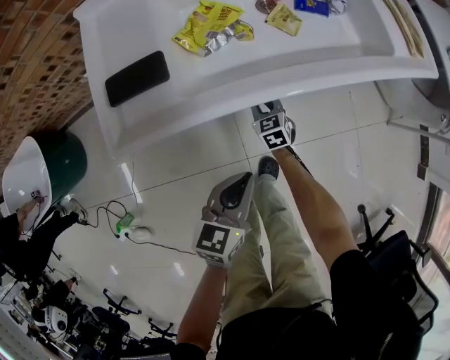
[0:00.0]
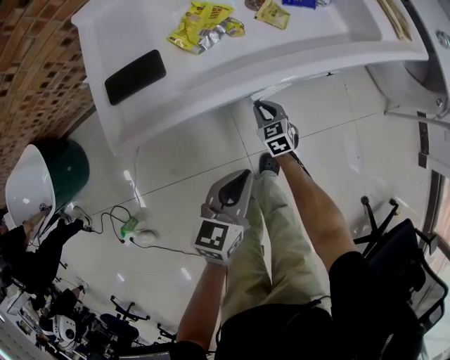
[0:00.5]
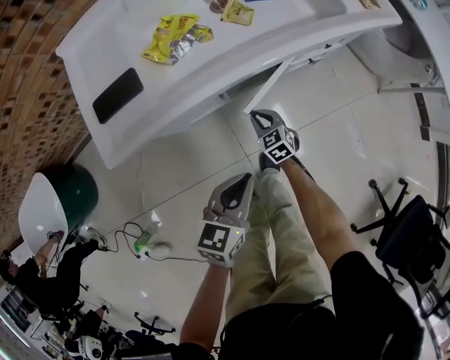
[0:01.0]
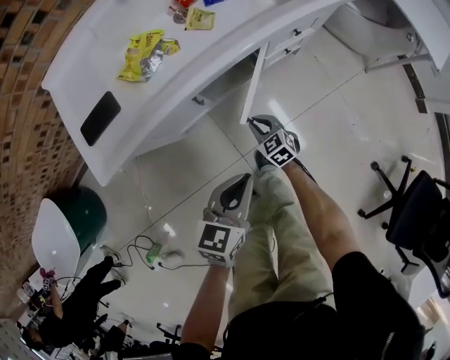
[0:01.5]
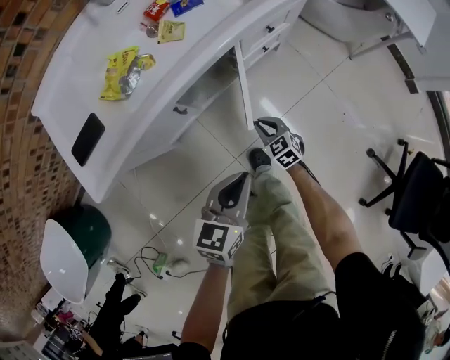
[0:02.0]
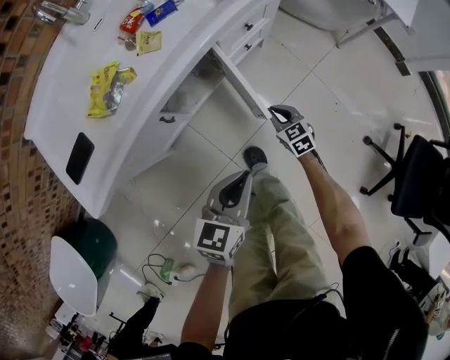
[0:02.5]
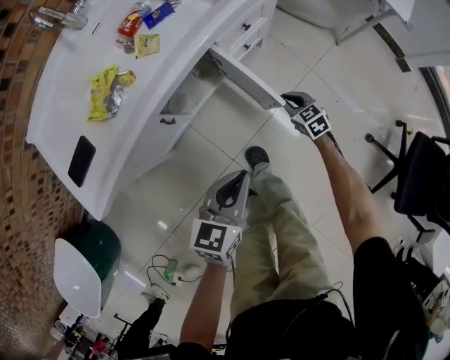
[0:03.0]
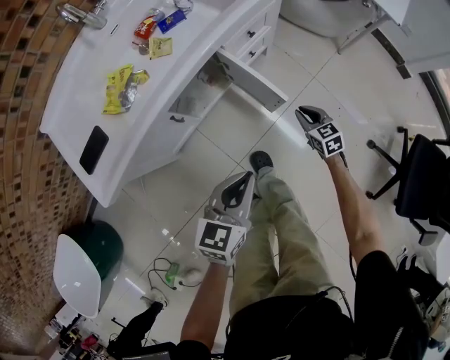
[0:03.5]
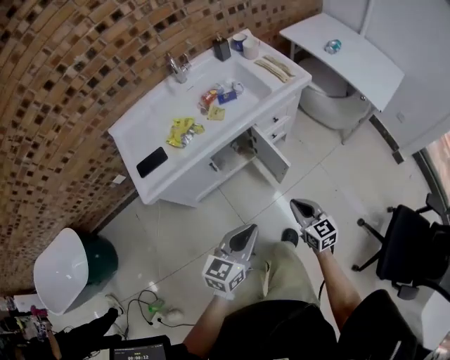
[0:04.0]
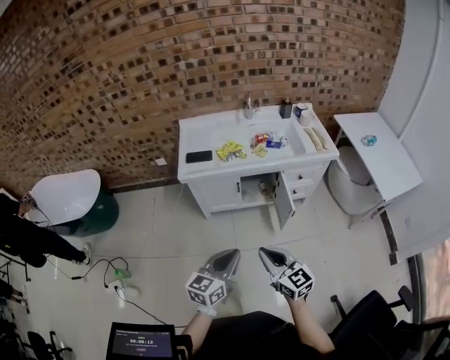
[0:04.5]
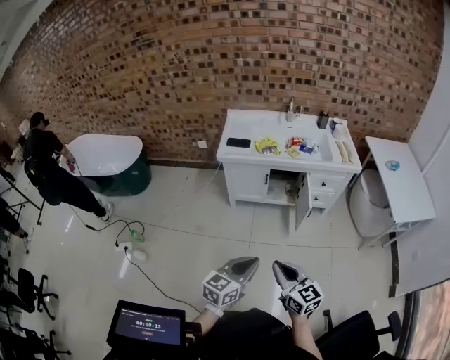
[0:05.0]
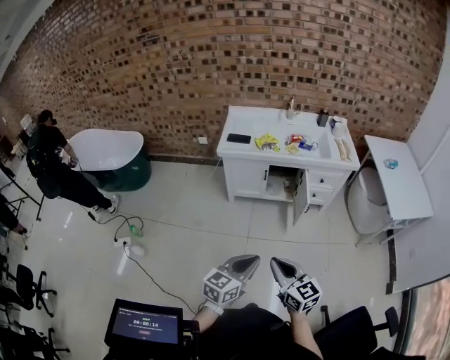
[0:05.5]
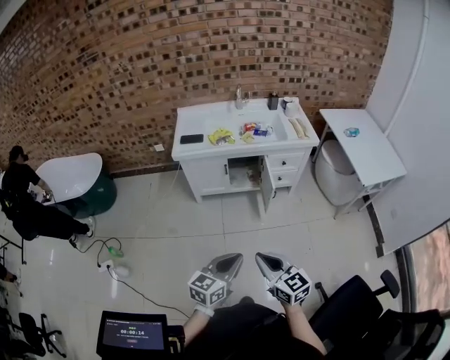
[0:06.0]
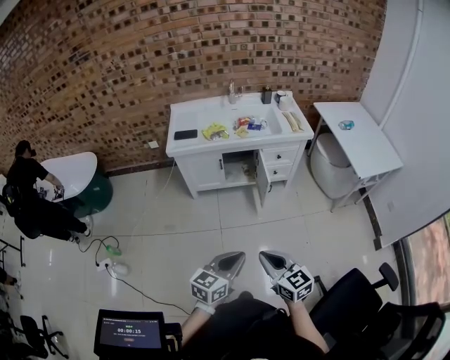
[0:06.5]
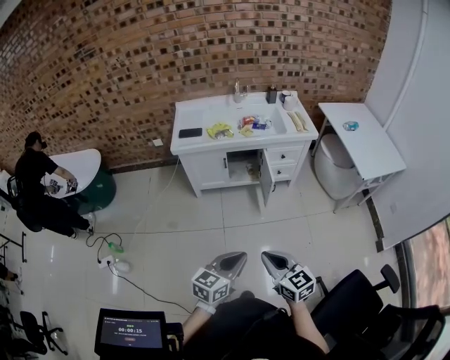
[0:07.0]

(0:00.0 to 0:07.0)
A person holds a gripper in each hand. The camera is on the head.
0:00.0 - 0:02.0: The right gripper goes some 25 cm to the right and backward, while the left gripper heads to the right and backward, covering approximately 15 cm, and turns by some 20 degrees.
0:02.0 - 0:03.5: The right gripper moves to the right, approximately 20 cm, while the left gripper shifts by roughly 5 cm.
0:03.5 - 0:05.0: The left gripper ends up about 50 cm from where it was, and changes its angle by roughly 40 degrees; the right gripper is displaced upward by about 50 cm, and tips its fingers upward by approximately 30 degrees.
0:05.0 - 0:07.0: Both grippers move to the right, roughly 5 cm.

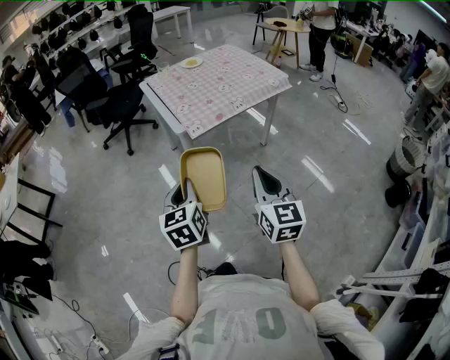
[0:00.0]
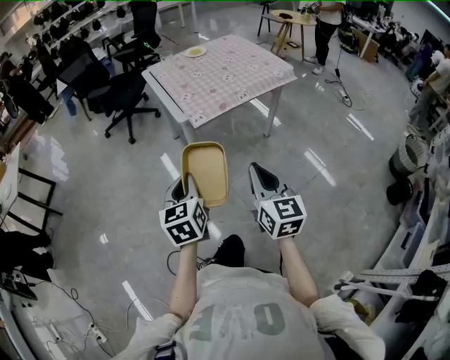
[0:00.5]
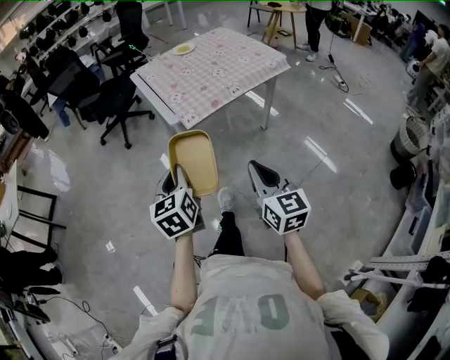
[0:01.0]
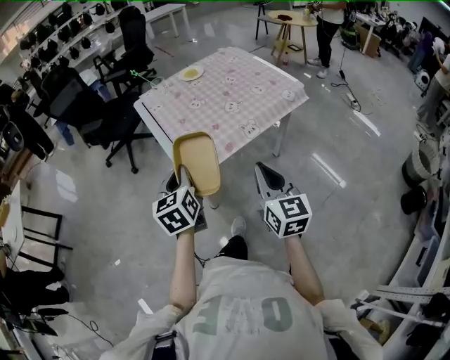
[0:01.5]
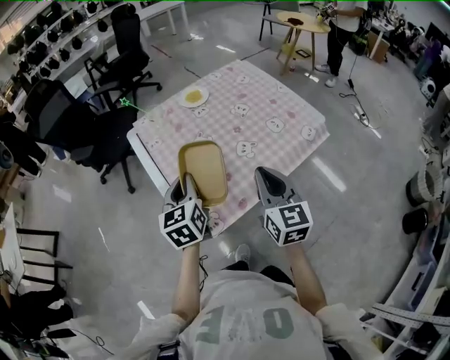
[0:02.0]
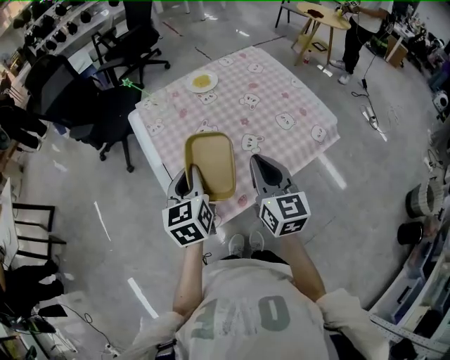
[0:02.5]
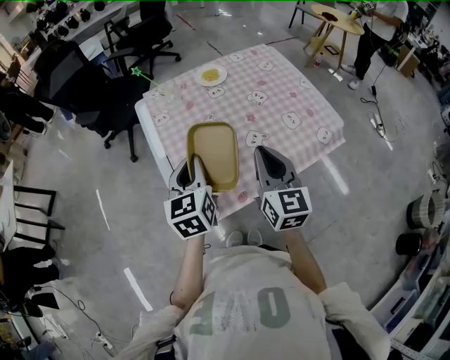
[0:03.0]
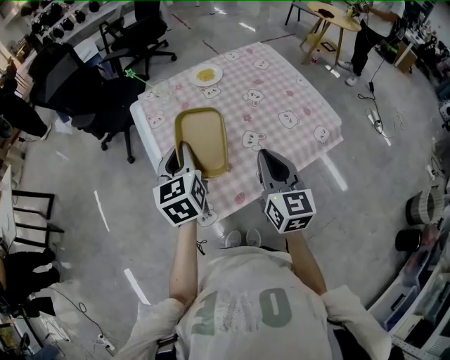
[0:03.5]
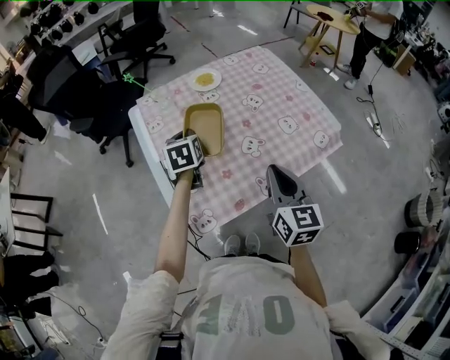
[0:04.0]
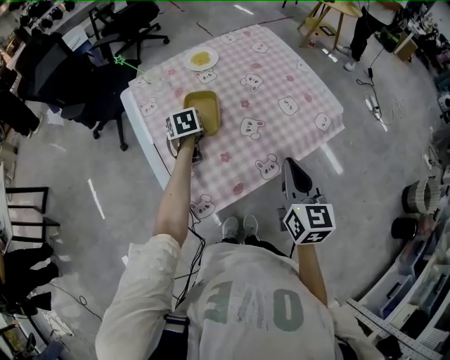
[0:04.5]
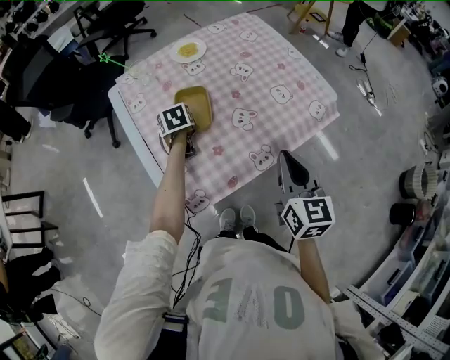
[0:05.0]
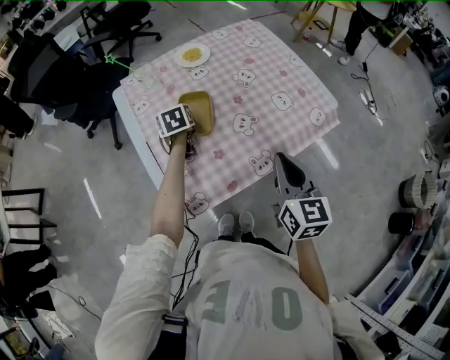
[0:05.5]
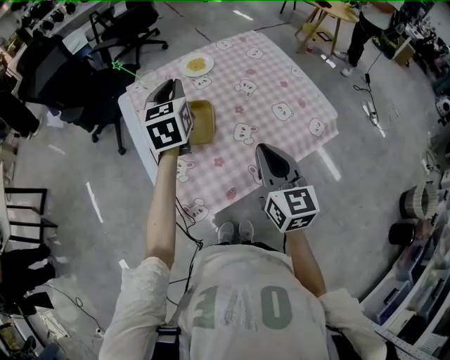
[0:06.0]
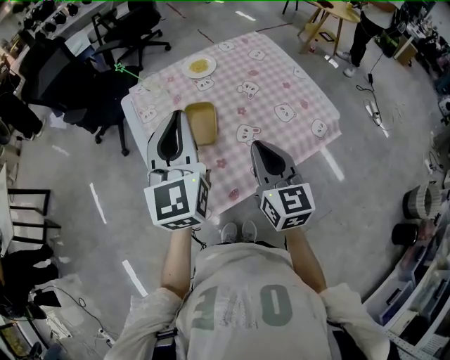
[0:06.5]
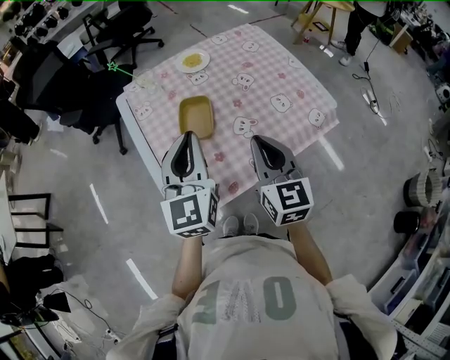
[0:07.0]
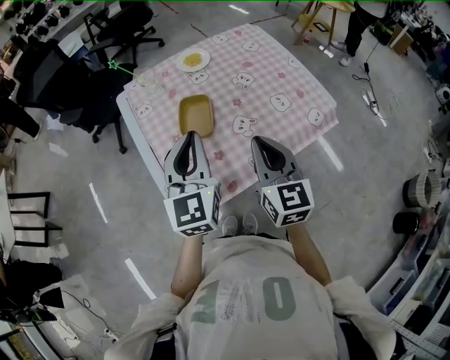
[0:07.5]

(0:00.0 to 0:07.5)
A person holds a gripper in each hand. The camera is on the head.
0:00.0 - 0:02.0: Both grippers are carried forward, roughly 50 cm.
0:02.0 - 0:04.0: The right gripper ends up roughly 5 cm from where it was; the left gripper is displaced forward and downward by about 20 cm.
0:04.0 - 0:05.5: The left gripper is displaced downward and forward by about 10 cm.
0:05.5 - 0:07.5: The left gripper moves upward and backward, some 30 cm, and tilts its fingers approximately 40 degrees upward; the right gripper shifts by about 5 cm.

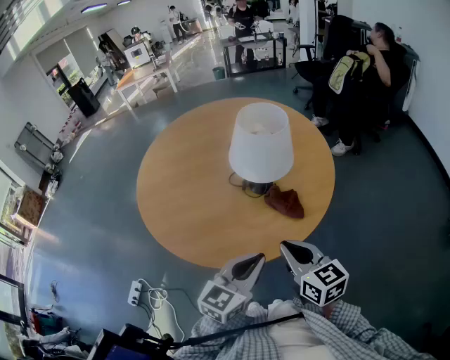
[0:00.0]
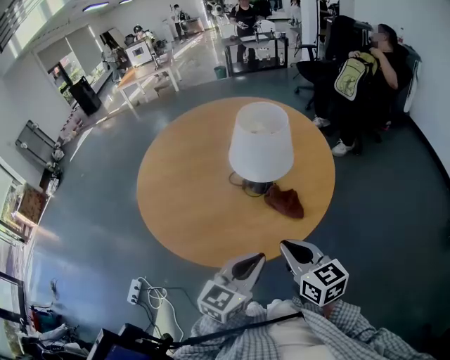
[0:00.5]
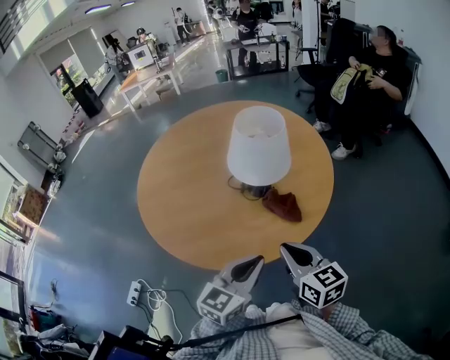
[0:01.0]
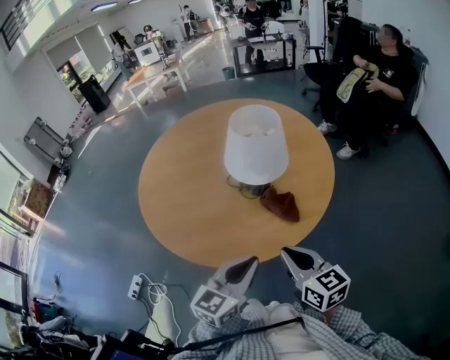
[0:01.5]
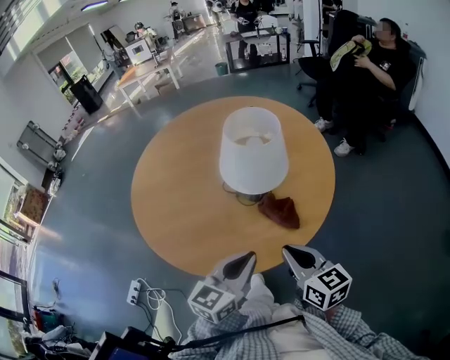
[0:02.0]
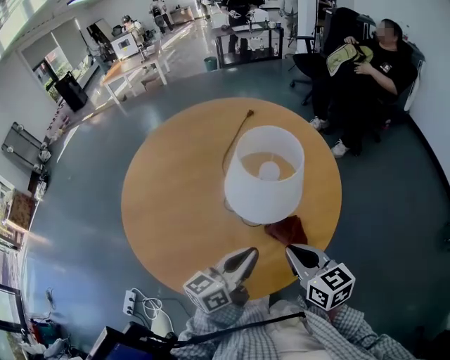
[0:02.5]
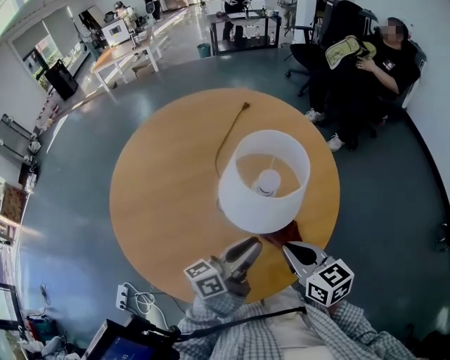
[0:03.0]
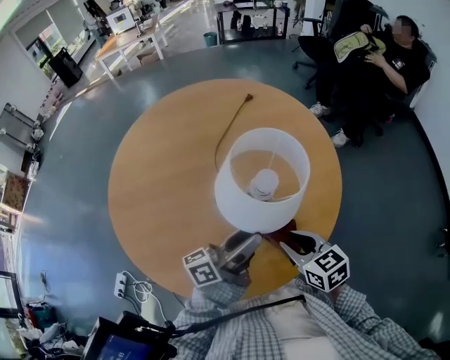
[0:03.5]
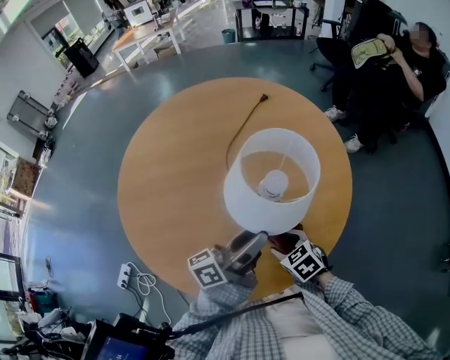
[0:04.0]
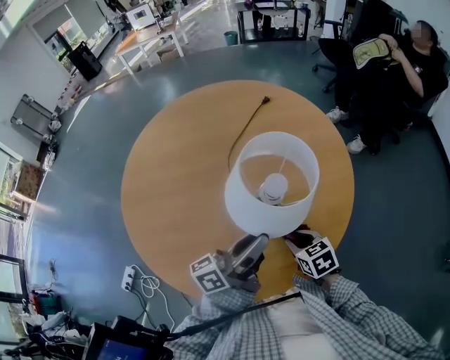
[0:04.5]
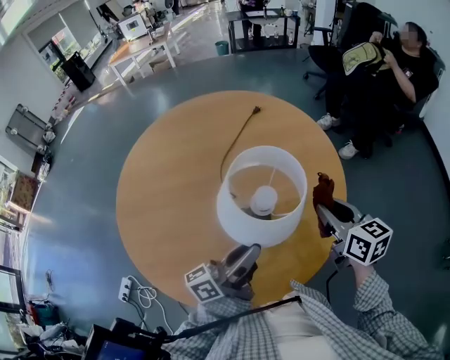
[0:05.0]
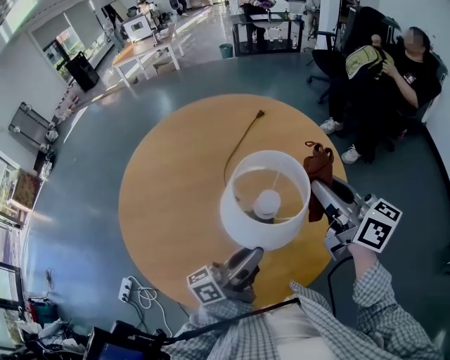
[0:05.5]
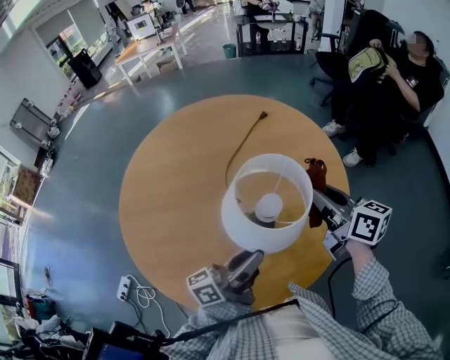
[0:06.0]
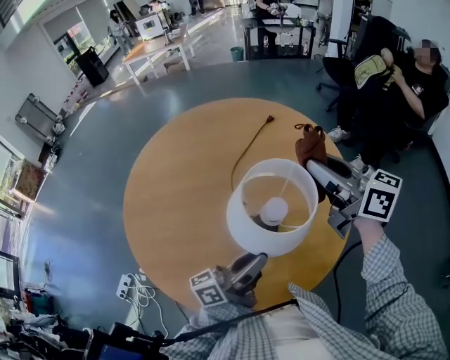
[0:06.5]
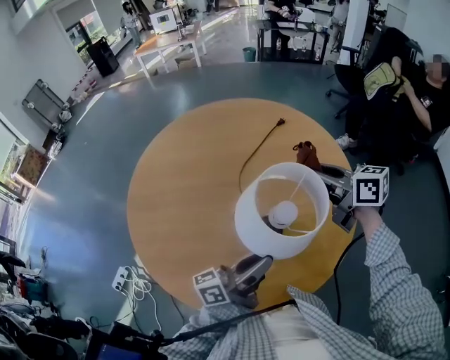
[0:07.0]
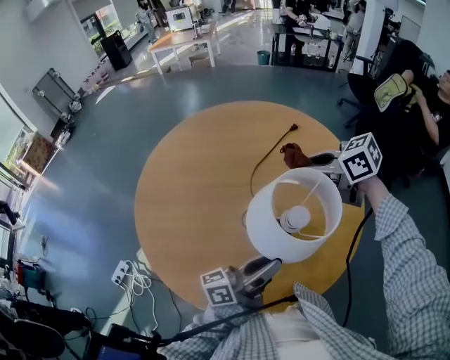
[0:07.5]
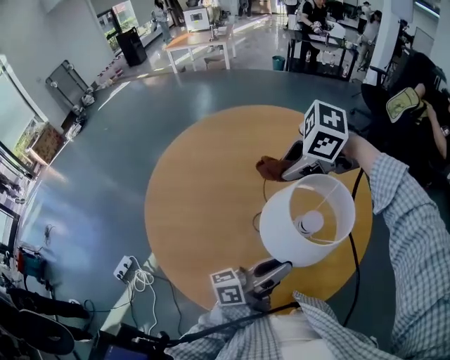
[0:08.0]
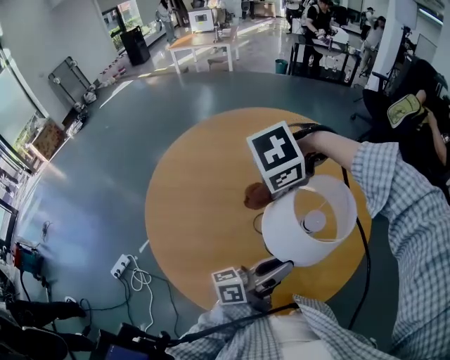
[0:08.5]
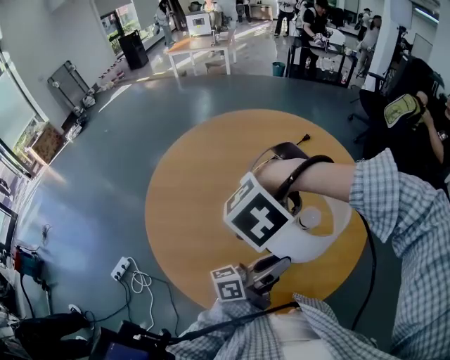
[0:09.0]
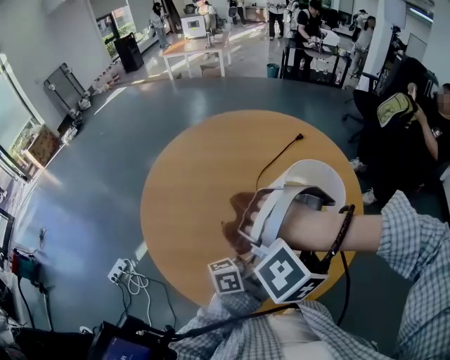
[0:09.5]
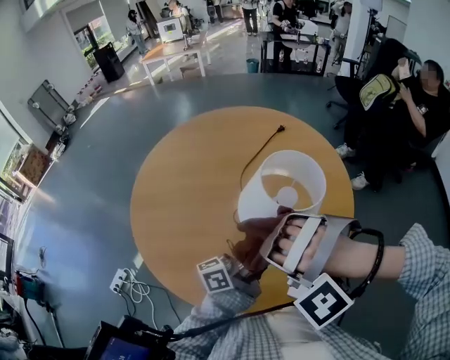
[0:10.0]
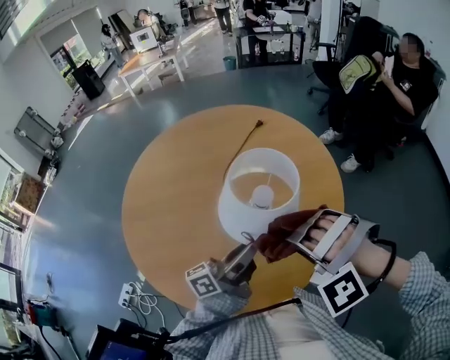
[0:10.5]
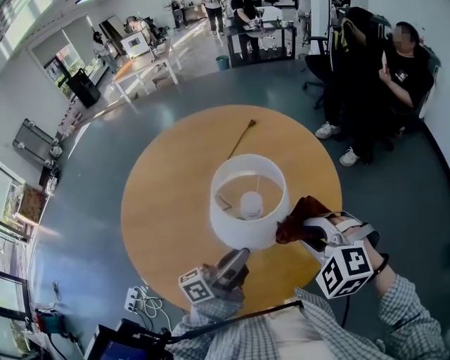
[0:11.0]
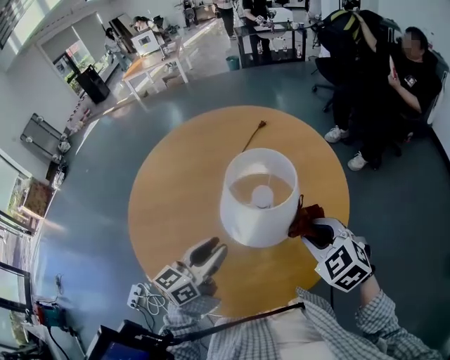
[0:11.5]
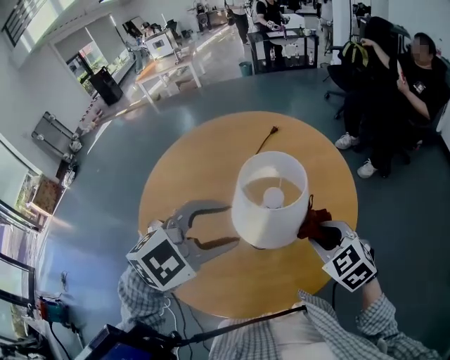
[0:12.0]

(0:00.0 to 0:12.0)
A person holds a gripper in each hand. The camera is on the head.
0:00.0 - 0:02.0: The right gripper changes place by approximately 5 cm.
0:02.0 - 0:04.0: The right gripper moves downward and forward, about 20 cm, tilts its fingers some 40 degrees downward, and opens up. Meanwhile the left gripper heads forward, covering some 20 cm, rotates around the line of its fingers by some 40 degrees, counterclockwise from behind, and opens up.
0:04.0 - 0:06.0: The left gripper closes up, while the right gripper travels upward and forward by approximately 30 cm, tilts its fingers approximately 50 degrees upward, and closes its fingers.
0:06.0 - 0:08.0: The right gripper goes upward and returns, some 10 cm each way, and angles its fingers downward, by approximately 50 degrees.
0:08.0 - 0:10.0: The right gripper changes place by roughly 25 cm, and rolls counterclockwise, seen from behind, by approximately 70 degrees.
0:10.0 - 0:12.0: The left gripper is displaced upward by some 10 cm, twists roughly 80 degrees clockwise, seen from behind, and opens its fingers, while the right gripper goes about 20 cm to the right, forward and downward, and rotates around the line of its fingers by roughly 100 degrees, clockwise from behind.
